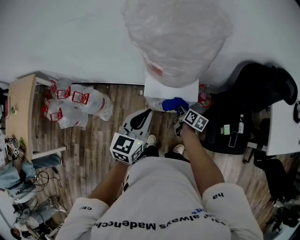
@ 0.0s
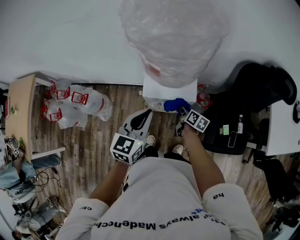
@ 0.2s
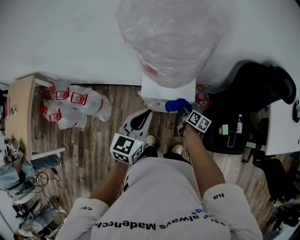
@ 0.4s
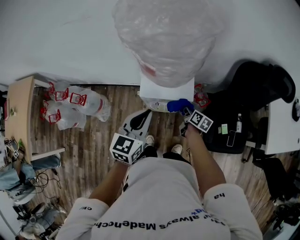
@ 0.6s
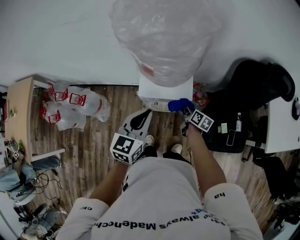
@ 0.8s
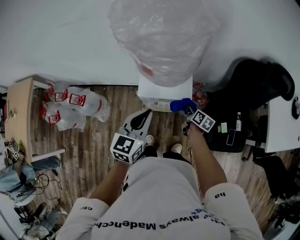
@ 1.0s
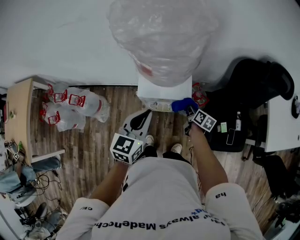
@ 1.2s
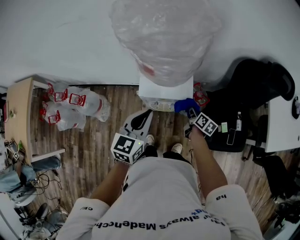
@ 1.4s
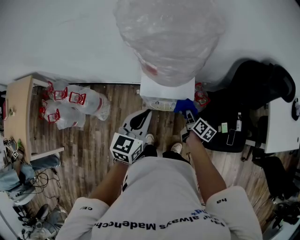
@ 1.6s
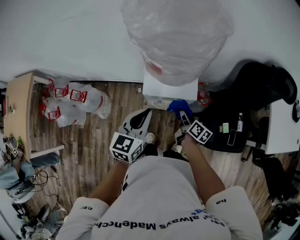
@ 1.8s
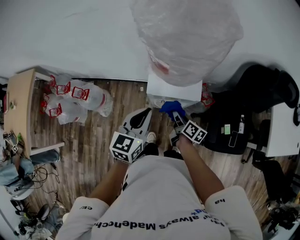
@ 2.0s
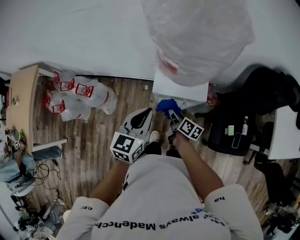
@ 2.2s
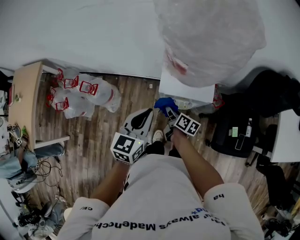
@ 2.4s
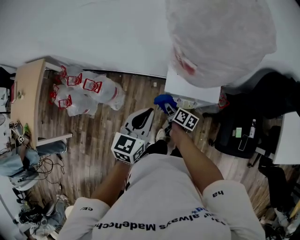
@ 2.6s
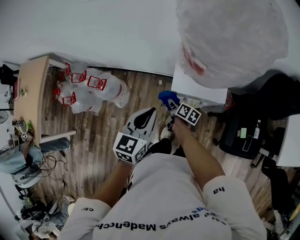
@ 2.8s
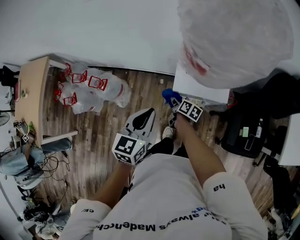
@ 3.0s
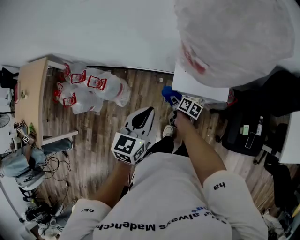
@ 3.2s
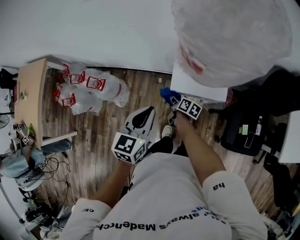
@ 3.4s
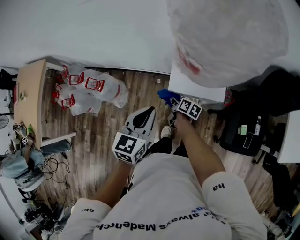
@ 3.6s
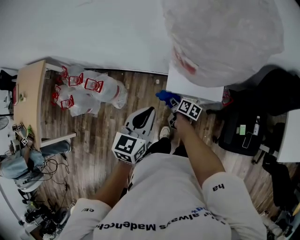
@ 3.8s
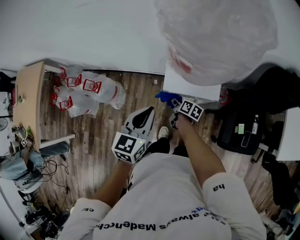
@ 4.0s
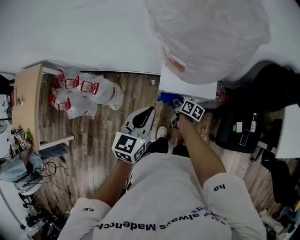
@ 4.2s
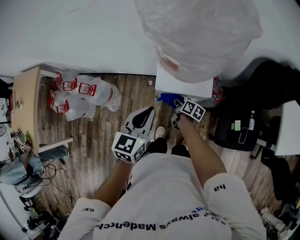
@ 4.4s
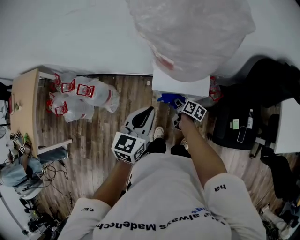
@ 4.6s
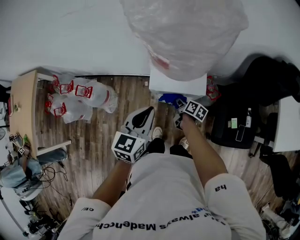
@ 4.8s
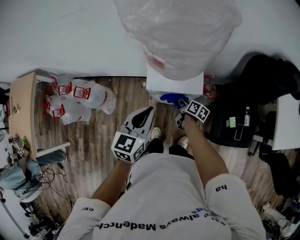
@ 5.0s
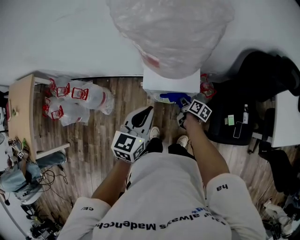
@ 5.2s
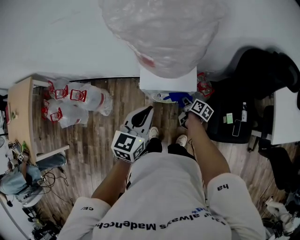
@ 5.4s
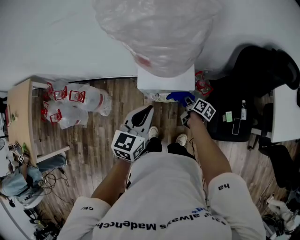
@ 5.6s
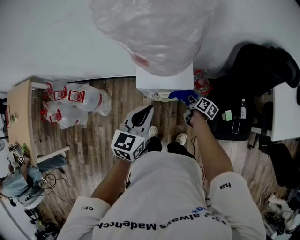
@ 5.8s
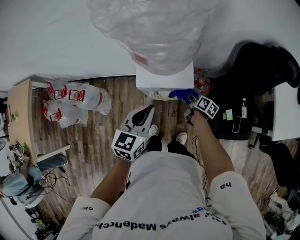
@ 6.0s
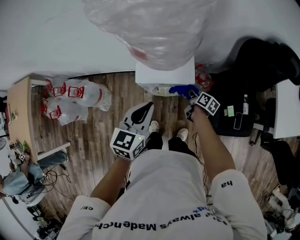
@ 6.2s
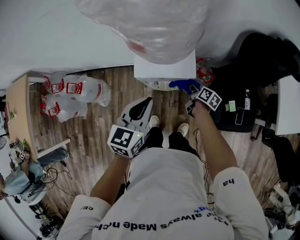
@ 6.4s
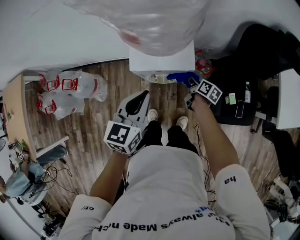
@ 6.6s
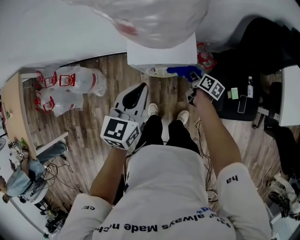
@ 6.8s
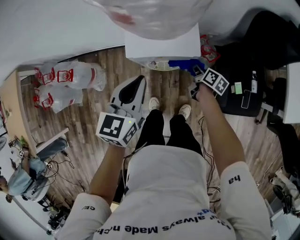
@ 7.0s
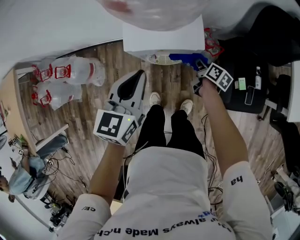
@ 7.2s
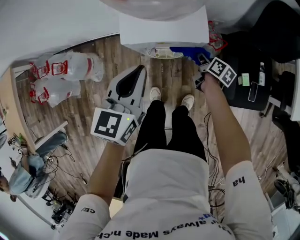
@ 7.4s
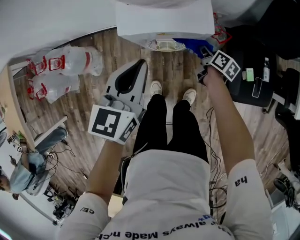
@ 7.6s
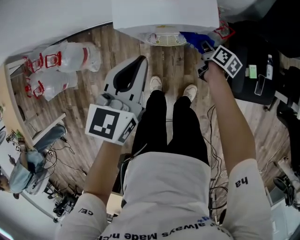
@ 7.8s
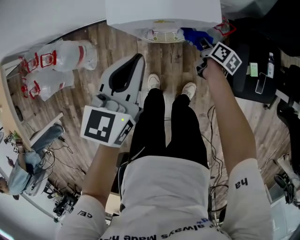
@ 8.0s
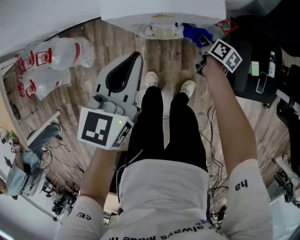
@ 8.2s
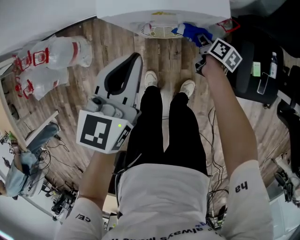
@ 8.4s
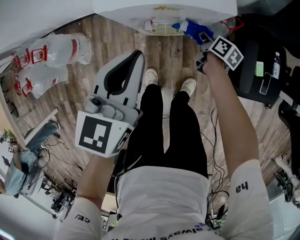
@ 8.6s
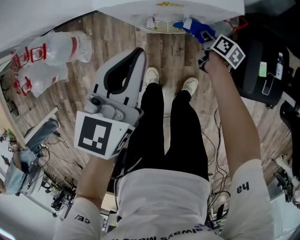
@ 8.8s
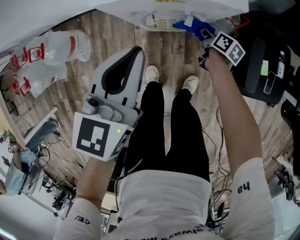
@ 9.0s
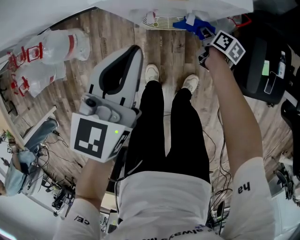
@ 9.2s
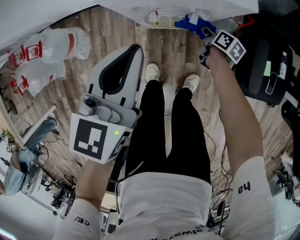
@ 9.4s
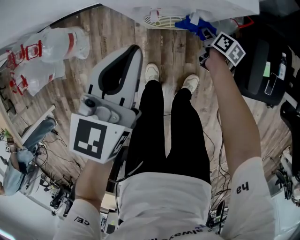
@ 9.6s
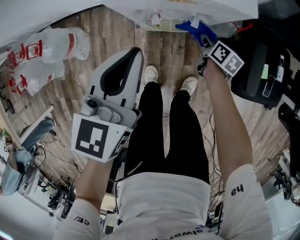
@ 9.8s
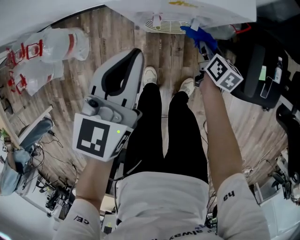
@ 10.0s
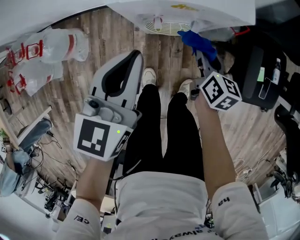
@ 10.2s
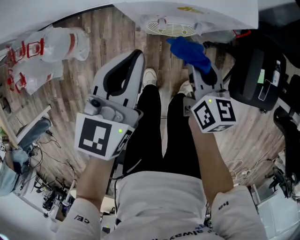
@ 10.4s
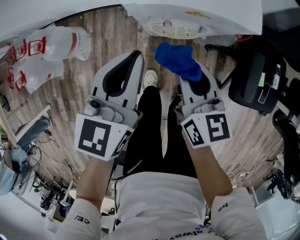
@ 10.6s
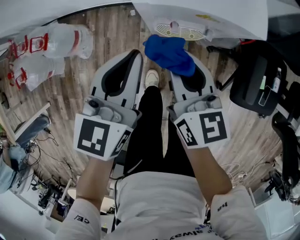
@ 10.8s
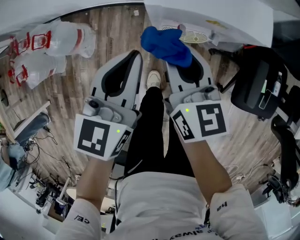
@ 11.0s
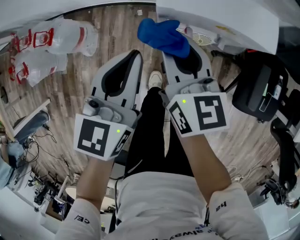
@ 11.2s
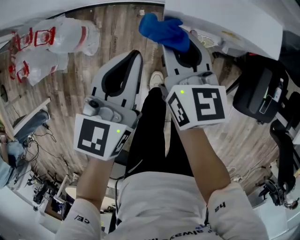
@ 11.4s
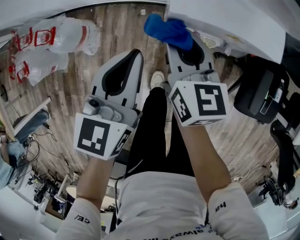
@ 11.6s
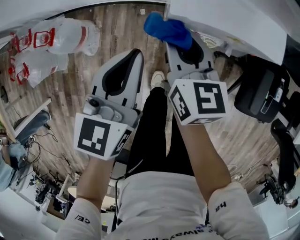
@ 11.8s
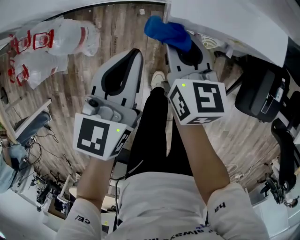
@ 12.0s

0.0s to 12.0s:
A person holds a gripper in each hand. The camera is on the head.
0.0s to 1.6s: The right gripper shifts roughly 5 cm to the right.
1.6s to 3.0s: The left gripper heads to the left, covering approximately 10 cm. Meanwhile the right gripper is displaced to the left by roughly 25 cm, and changes its angle by about 20 degrees.
3.0s to 4.4s: Both grippers move to the right, some 10 cm.
4.4s to 6.0s: The left gripper goes approximately 10 cm to the right. Meanwhile the right gripper heads to the right, covering some 20 cm.
6.0s to 7.6s: Both grippers move downward, approximately 10 cm.
7.6s to 9.0s: The right gripper is displaced downward by some 10 cm, while the left gripper shifts roughly 10 cm downward.
9.0s to 10.4s: The right gripper is displaced upward, backward and to the left by roughly 25 cm, and swivels roughly 30 degrees.
10.4s to 12.0s: The right gripper moves to the left and forward, some 20 cm. Meanwhile the left gripper travels to the left by some 10 cm.

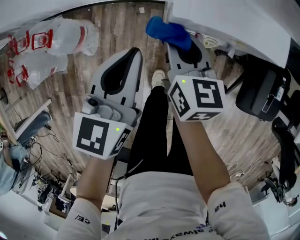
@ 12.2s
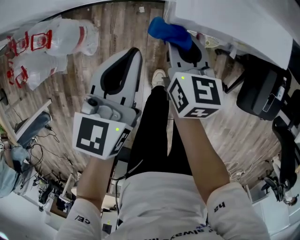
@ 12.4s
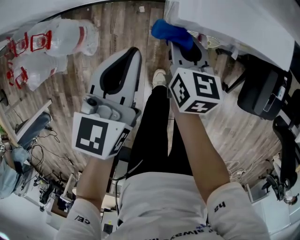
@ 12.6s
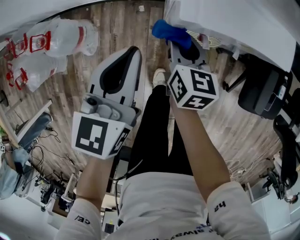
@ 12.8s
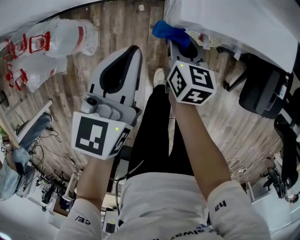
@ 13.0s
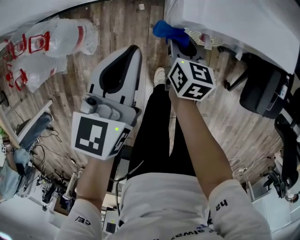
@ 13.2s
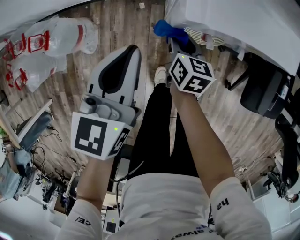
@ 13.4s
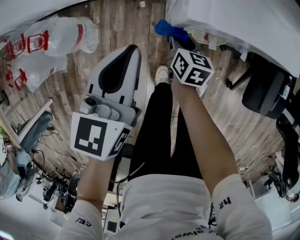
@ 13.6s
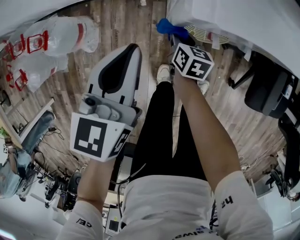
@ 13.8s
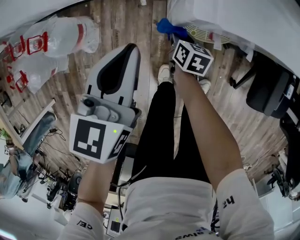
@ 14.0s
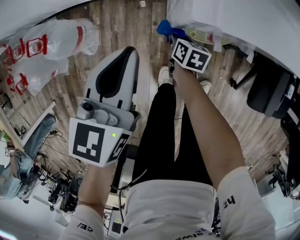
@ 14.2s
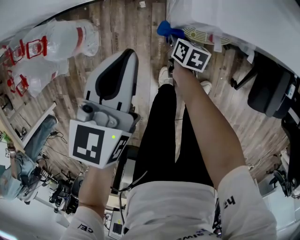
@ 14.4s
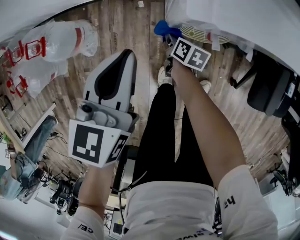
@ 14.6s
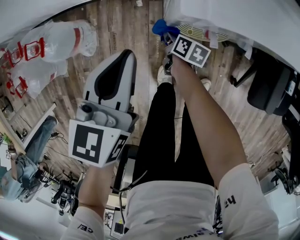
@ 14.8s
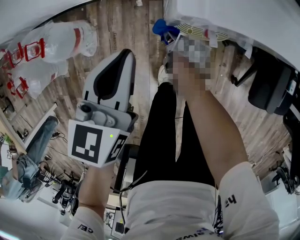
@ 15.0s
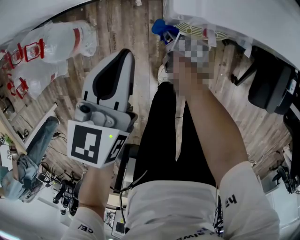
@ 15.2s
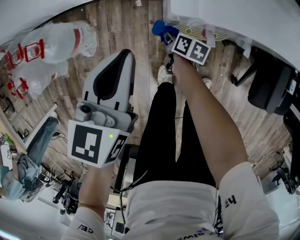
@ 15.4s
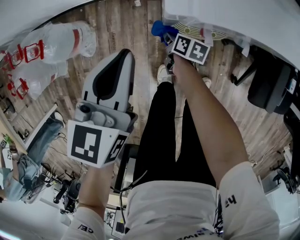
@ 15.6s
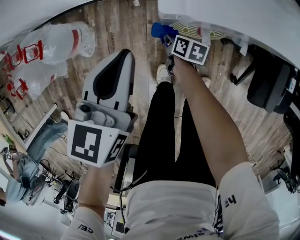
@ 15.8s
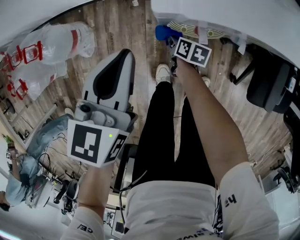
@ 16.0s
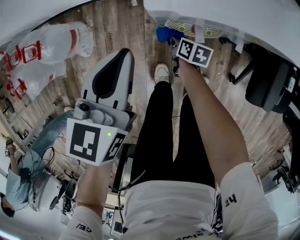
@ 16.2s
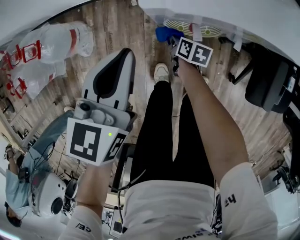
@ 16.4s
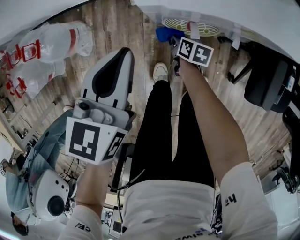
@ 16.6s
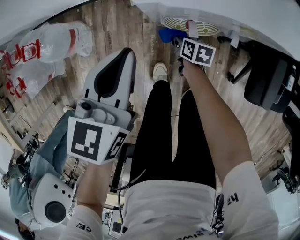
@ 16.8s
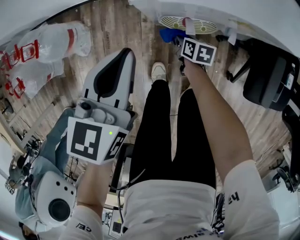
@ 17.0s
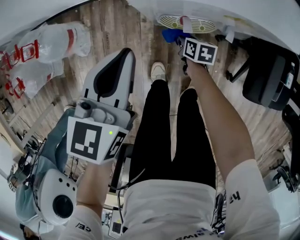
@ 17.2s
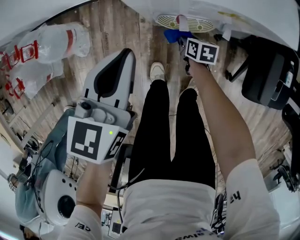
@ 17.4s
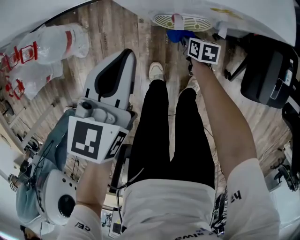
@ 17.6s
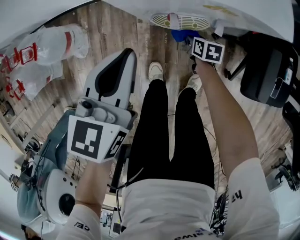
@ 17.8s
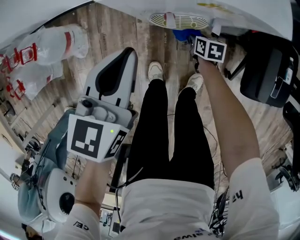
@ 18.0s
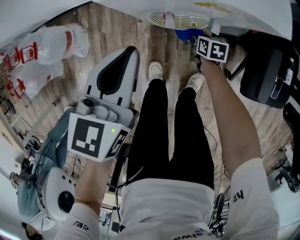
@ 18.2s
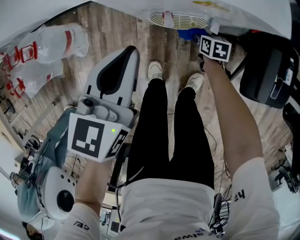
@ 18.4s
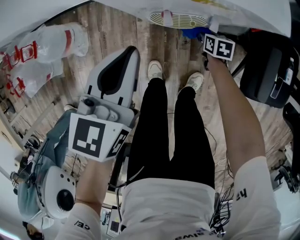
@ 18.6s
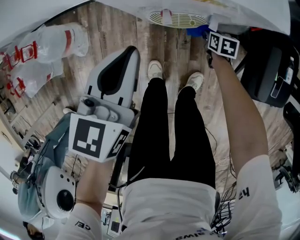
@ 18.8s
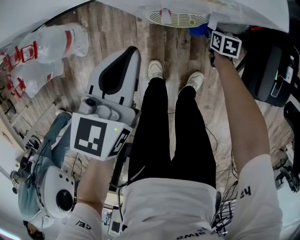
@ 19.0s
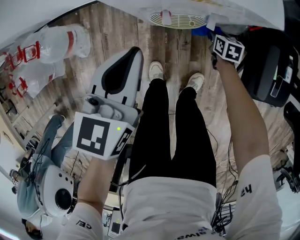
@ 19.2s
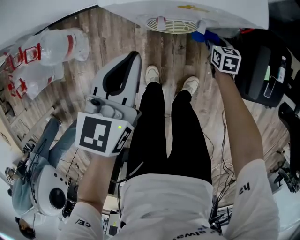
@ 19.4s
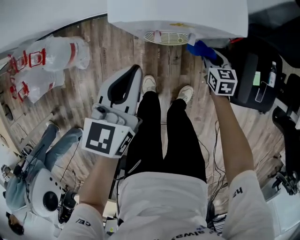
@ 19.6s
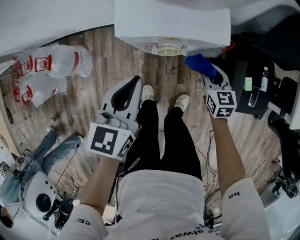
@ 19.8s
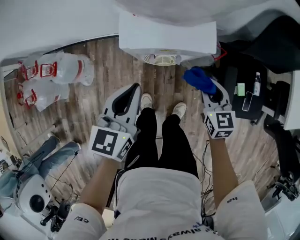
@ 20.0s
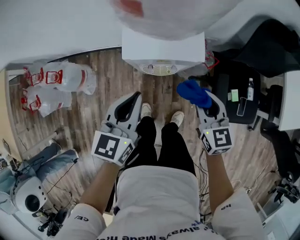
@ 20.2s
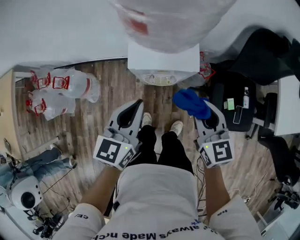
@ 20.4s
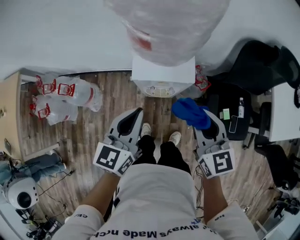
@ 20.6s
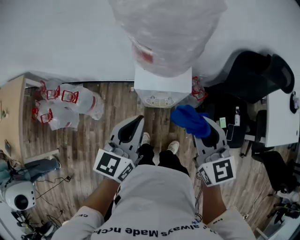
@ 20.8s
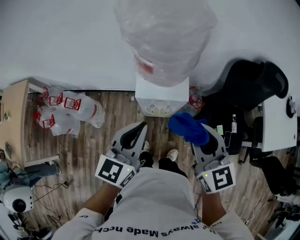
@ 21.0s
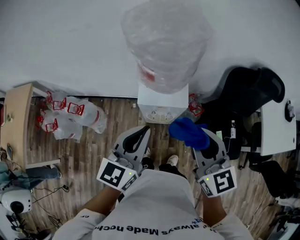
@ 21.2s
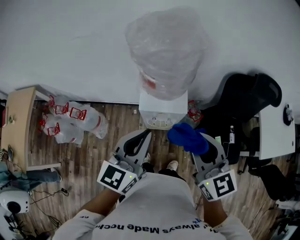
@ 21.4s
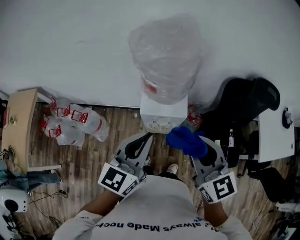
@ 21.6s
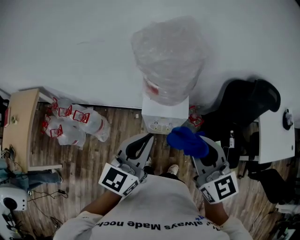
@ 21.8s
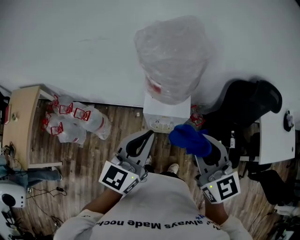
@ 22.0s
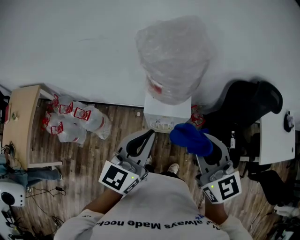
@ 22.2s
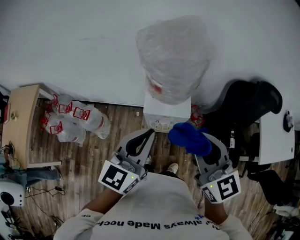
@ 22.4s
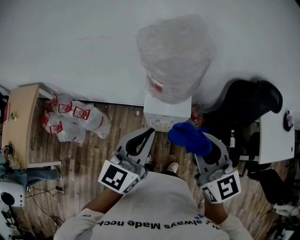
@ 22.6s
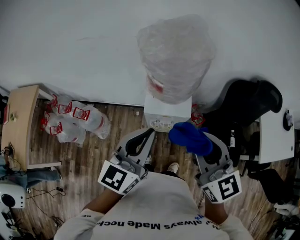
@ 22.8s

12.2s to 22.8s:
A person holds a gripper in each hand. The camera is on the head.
12.2s to 13.8s: The right gripper heads downward, covering about 20 cm, and swivels roughly 20 degrees. Meanwhile the left gripper shifts by some 5 cm.
13.8s to 15.2s: The right gripper is displaced downward by approximately 10 cm, and changes its angle by roughly 20 degrees.
15.2s to 16.8s: The right gripper shifts roughly 5 cm to the right.
16.8s to 18.2s: The right gripper shifts roughly 10 cm to the right, while the left gripper shifts about 5 cm to the right.
18.2s to 19.8s: The right gripper is displaced upward by roughly 25 cm, and swivels some 30 degrees. The left gripper goes some 10 cm upward.
19.8s to 21.2s: The right gripper moves upward, some 50 cm, and changes its angle by some 30 degrees, while the left gripper heads upward, covering approximately 30 cm, and turns by some 20 degrees.
21.2s to 22.8s: The grippers both shift upward by approximately 5 cm.

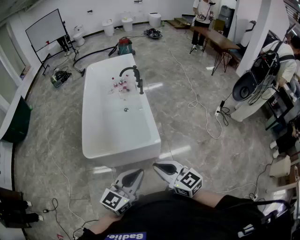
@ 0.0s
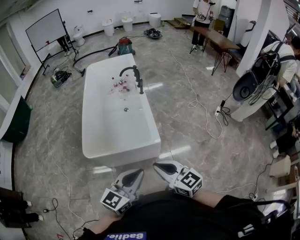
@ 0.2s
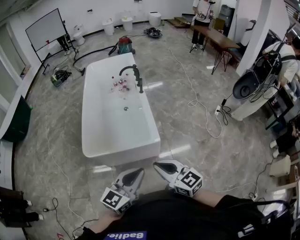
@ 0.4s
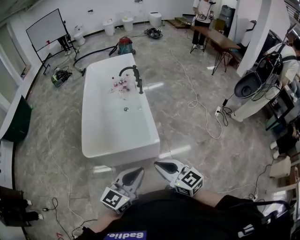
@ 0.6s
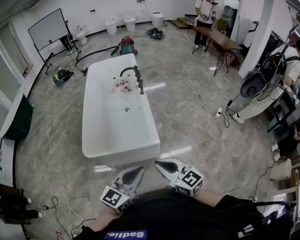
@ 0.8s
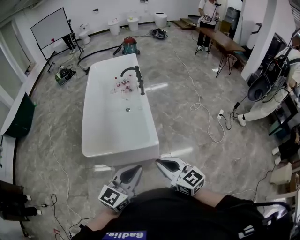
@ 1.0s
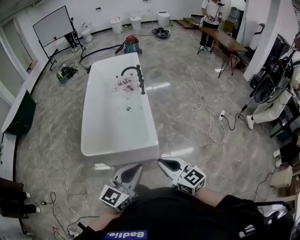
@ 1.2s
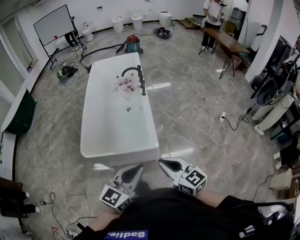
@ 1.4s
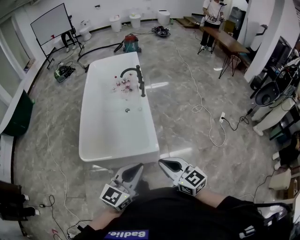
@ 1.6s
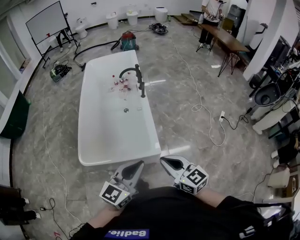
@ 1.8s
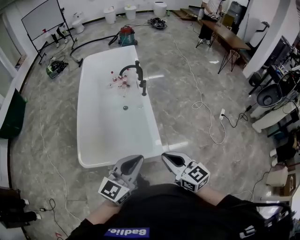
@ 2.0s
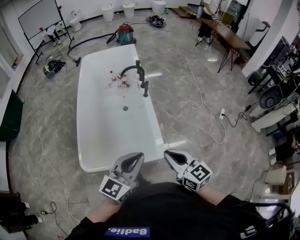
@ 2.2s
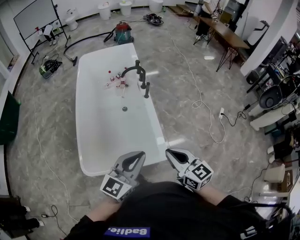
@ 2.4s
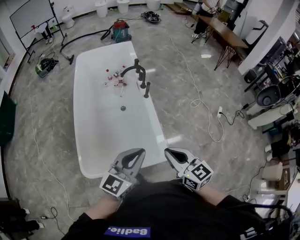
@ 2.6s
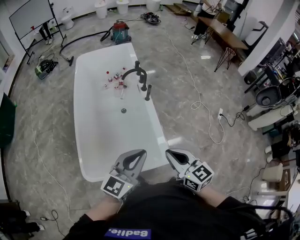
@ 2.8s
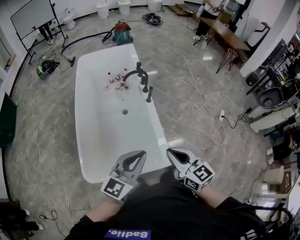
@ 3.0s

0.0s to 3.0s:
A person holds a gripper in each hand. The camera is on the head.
0.0s to 1.6s: Both grippers move forward and to the right, about 15 cm.
1.6s to 3.0s: The grippers both shift forward and to the left by some 30 cm.
